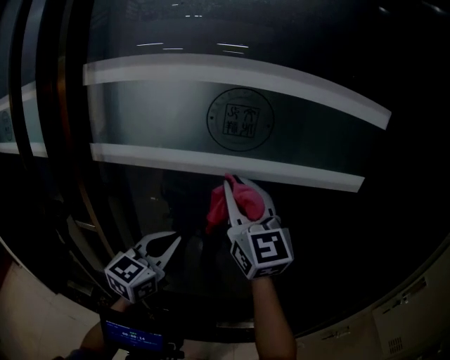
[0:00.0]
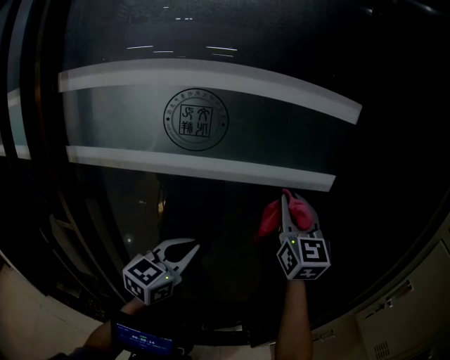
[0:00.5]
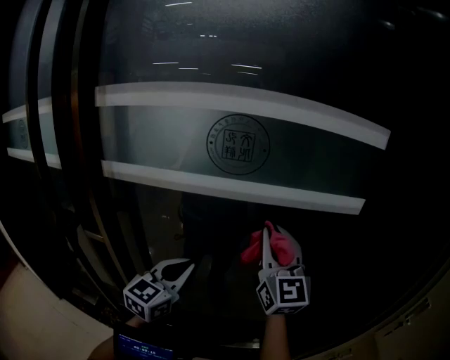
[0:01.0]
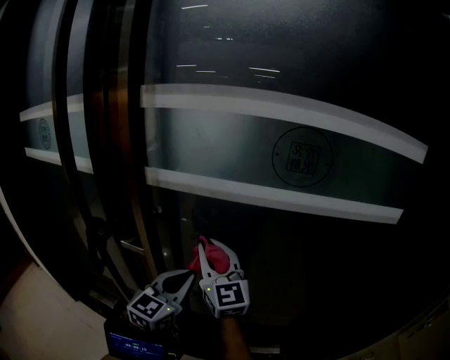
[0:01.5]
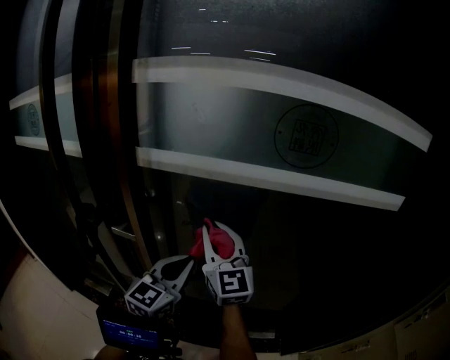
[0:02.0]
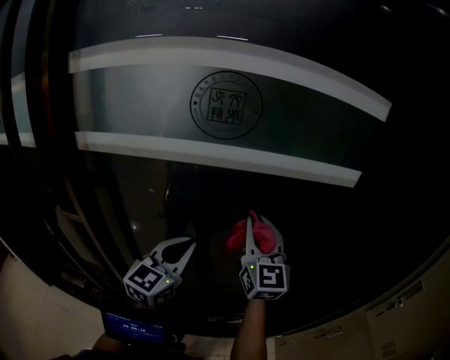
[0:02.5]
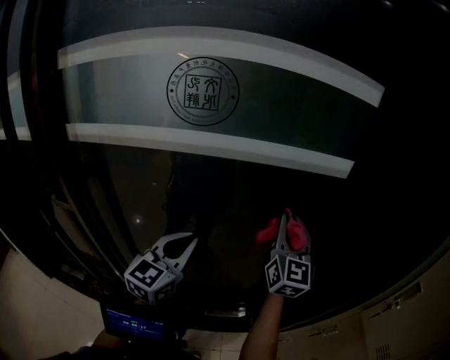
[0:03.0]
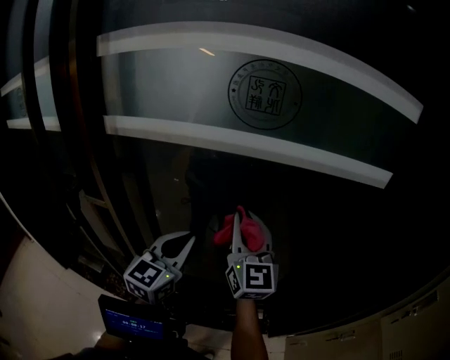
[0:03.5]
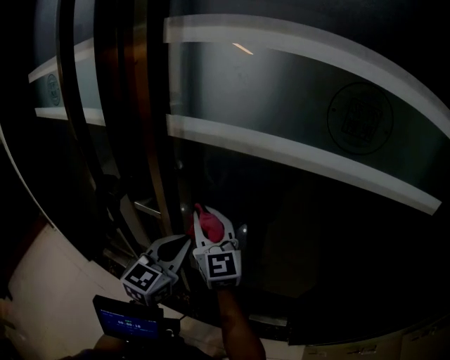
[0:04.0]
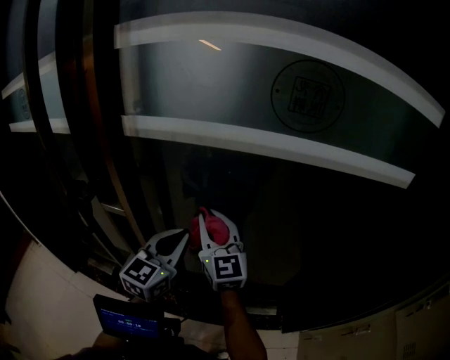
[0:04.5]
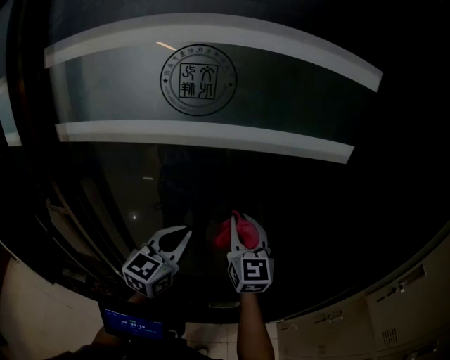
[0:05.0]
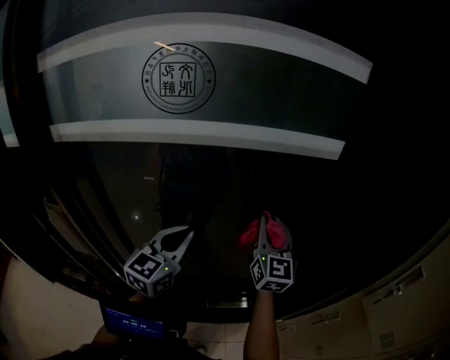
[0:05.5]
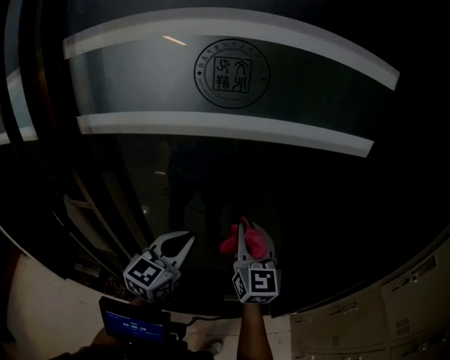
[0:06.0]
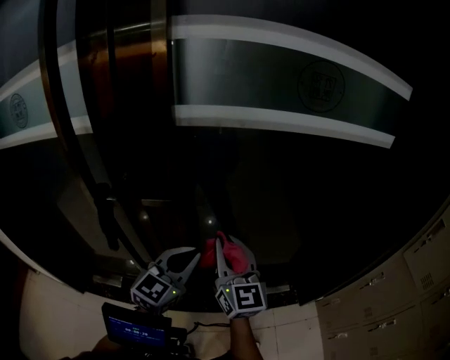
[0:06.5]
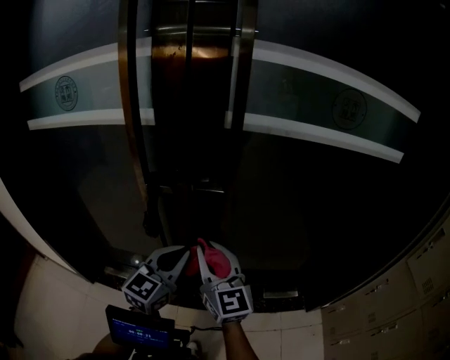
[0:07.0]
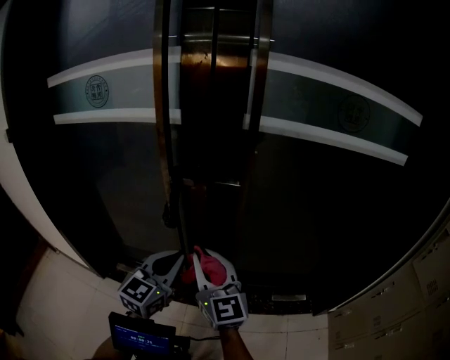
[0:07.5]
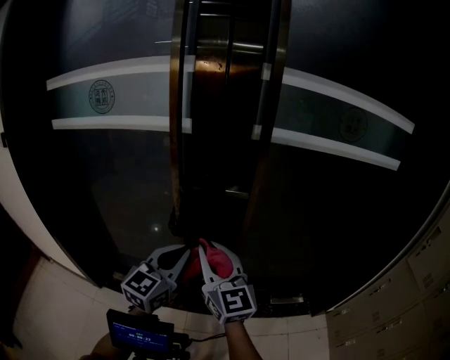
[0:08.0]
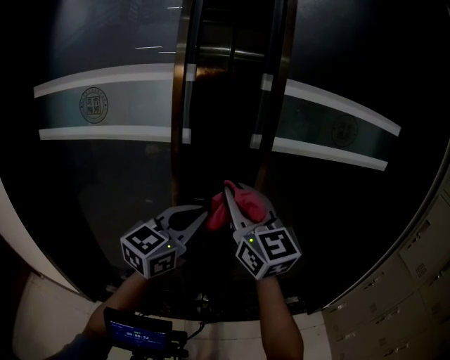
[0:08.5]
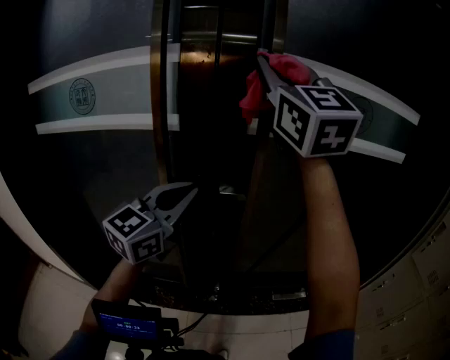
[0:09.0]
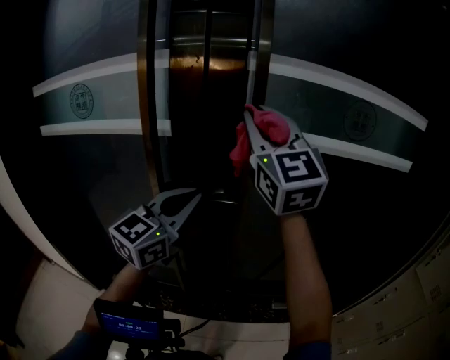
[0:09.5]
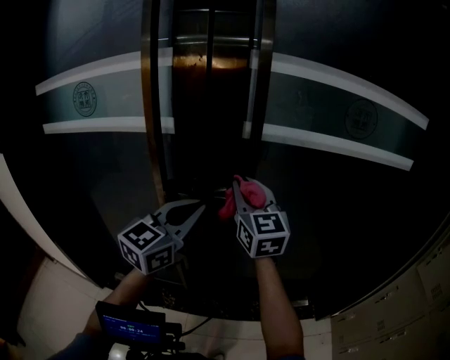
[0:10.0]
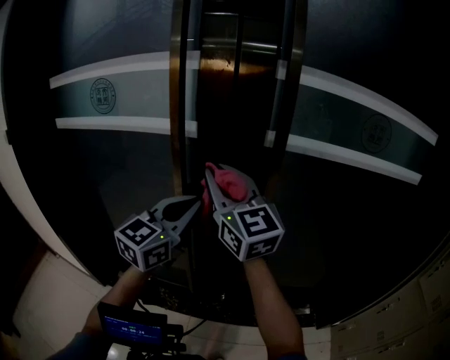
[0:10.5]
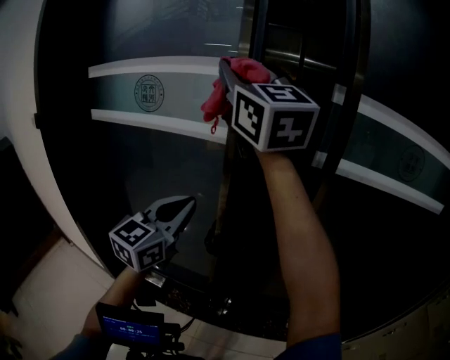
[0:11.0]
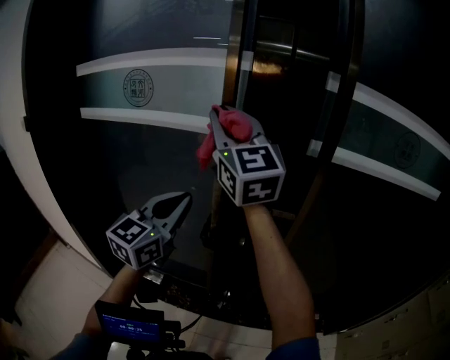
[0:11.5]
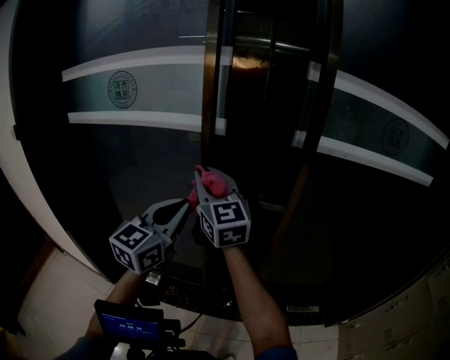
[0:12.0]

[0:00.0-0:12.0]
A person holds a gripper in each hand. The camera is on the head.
0:00.0 to 0:02.0: The left gripper goes about 10 cm to the left, while the right gripper shifts about 20 cm to the left and downward.
0:04.0 to 0:06.0: The left gripper changes place by about 20 cm, and rotates approximately 20 degrees. The right gripper shifts by about 35 cm, and changes its angle by about 30 degrees.
0:06.0 to 0:08.0: The pair of grippers is taken to the left and backward, about 50 cm.
0:08.0 to 0:10.0: The right gripper goes approximately 20 cm forward and to the right, and moves approximately 35 cm upward and comes back. Meanwhile the left gripper heads forward, upward and to the right, covering about 15 cm.
0:10.0 to 0:12.0: The grippers both shift to the left by approximately 20 cm. The right gripper travels upward and back again, about 30 cm each way.

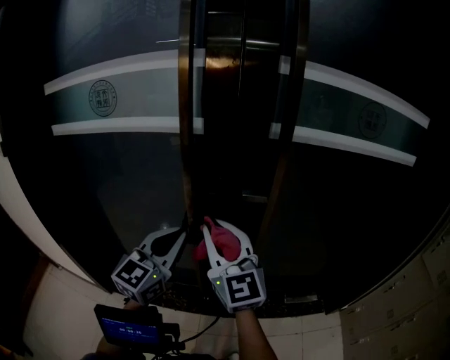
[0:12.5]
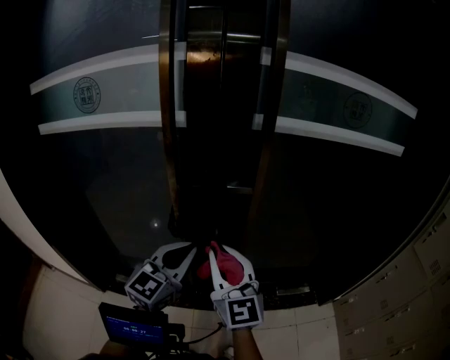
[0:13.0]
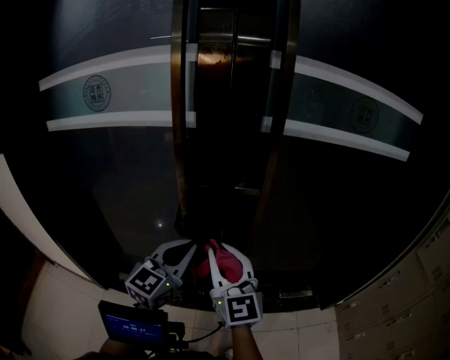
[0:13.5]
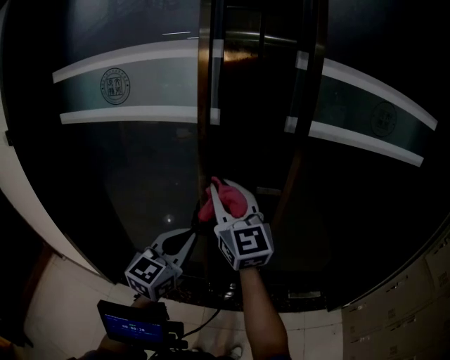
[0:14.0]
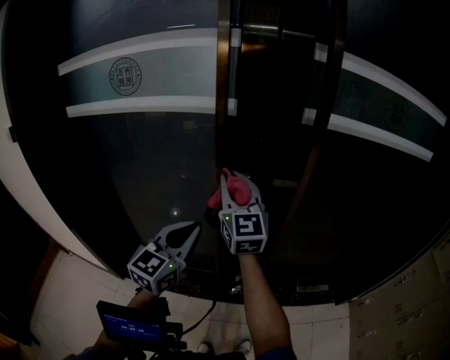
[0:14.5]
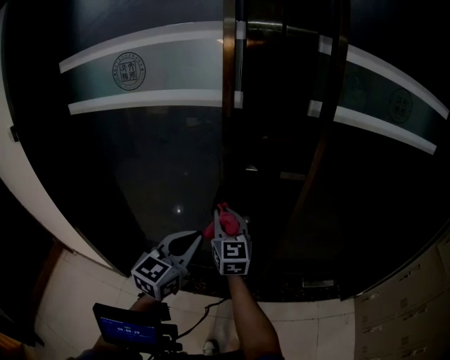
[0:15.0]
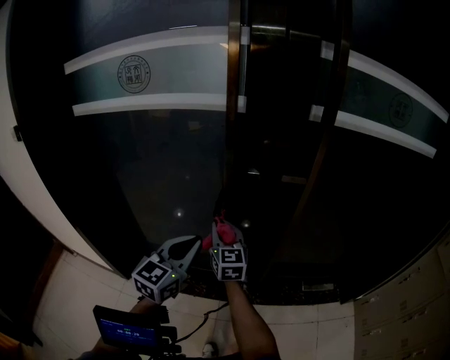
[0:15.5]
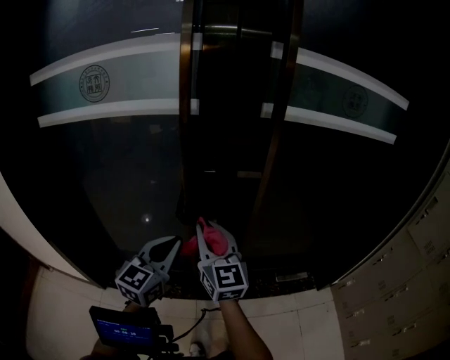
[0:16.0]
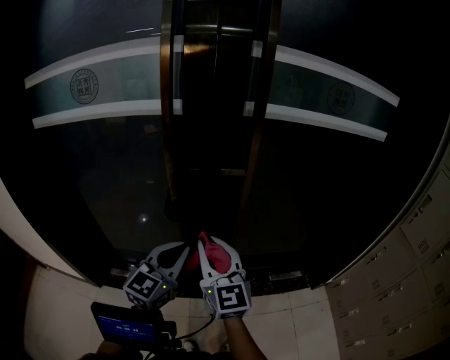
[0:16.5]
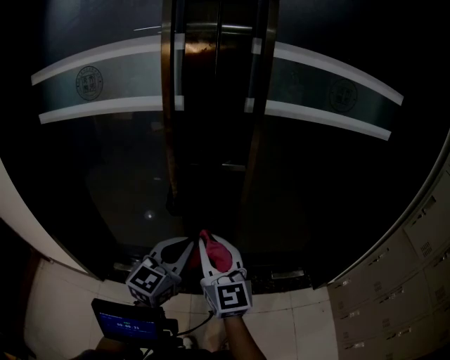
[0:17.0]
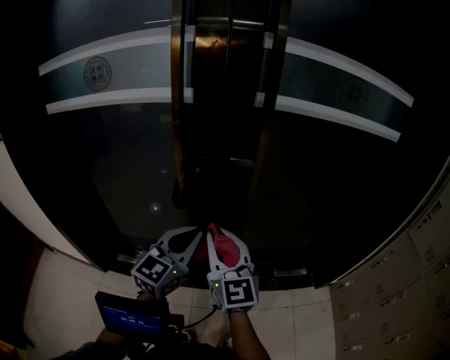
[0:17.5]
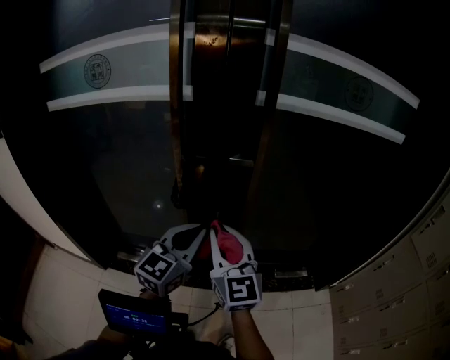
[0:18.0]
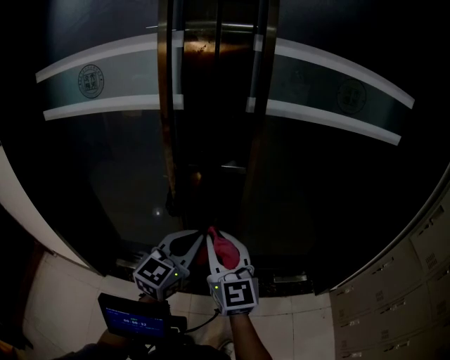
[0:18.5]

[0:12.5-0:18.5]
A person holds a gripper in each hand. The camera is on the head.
0:12.5 to 0:14.5: The right gripper is displaced forward and to the left by about 10 cm. Meanwhile the left gripper travels to the left and downward by roughly 10 cm.
0:14.5 to 0:16.5: The right gripper moves backward, to the right and downward, approximately 20 cm. The left gripper heads to the right and backward, covering approximately 10 cm.
0:16.5 to 0:18.5: The left gripper is displaced to the right by roughly 5 cm.

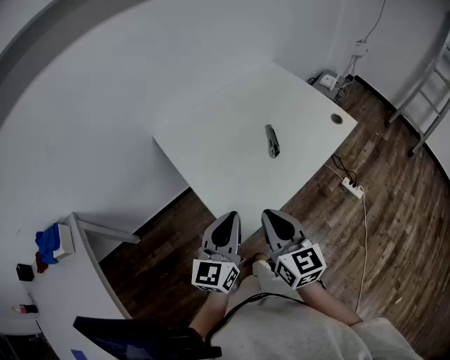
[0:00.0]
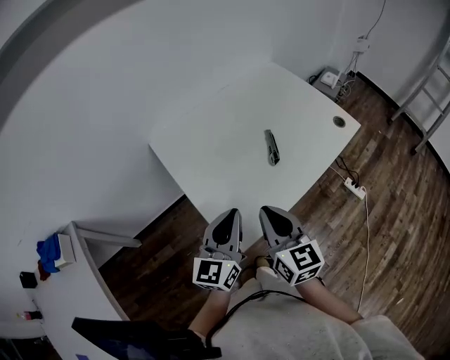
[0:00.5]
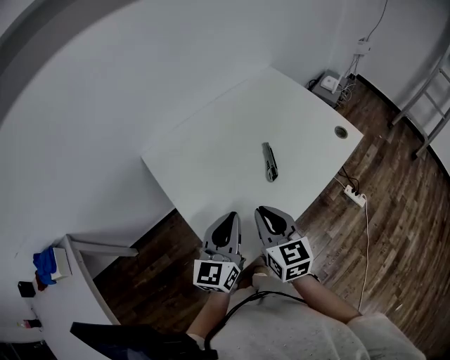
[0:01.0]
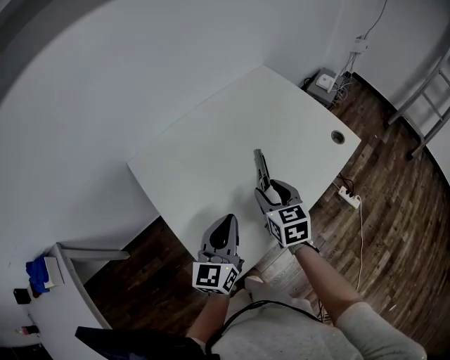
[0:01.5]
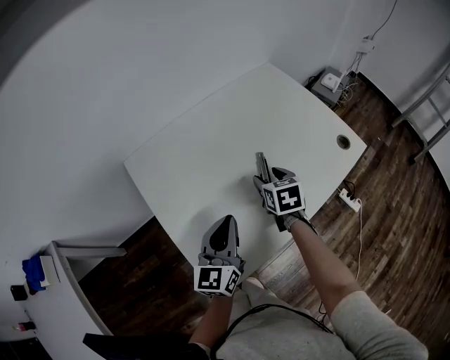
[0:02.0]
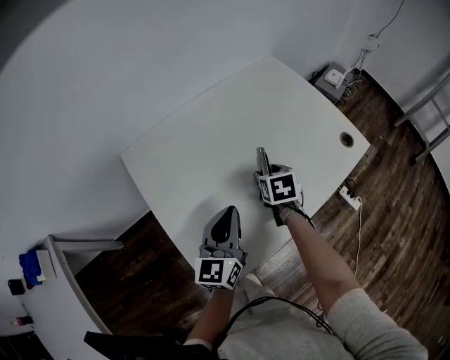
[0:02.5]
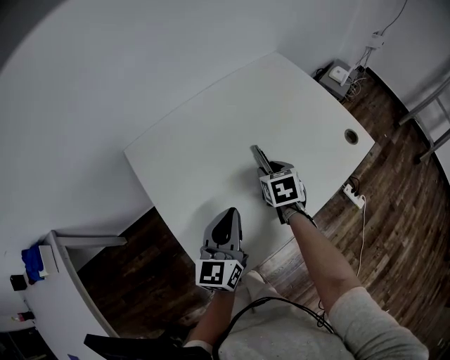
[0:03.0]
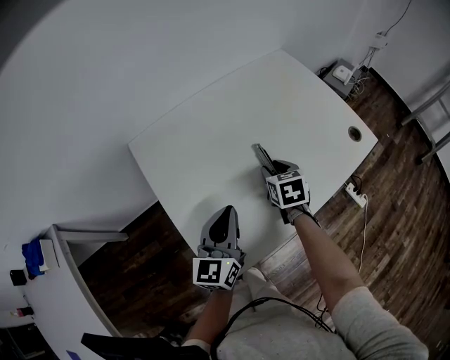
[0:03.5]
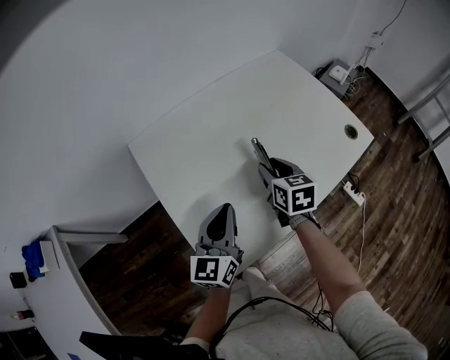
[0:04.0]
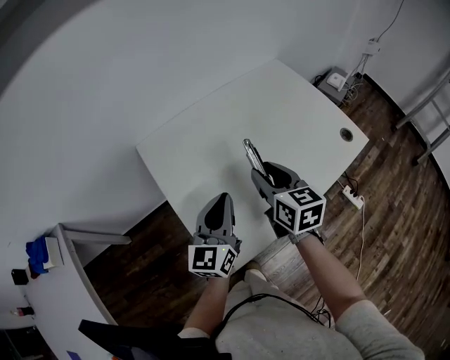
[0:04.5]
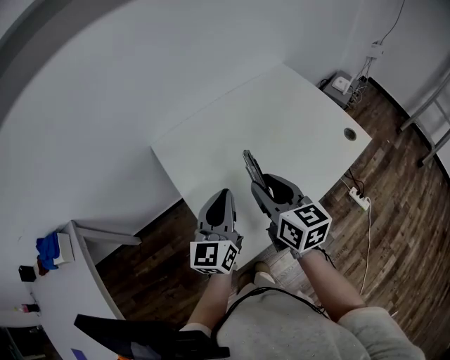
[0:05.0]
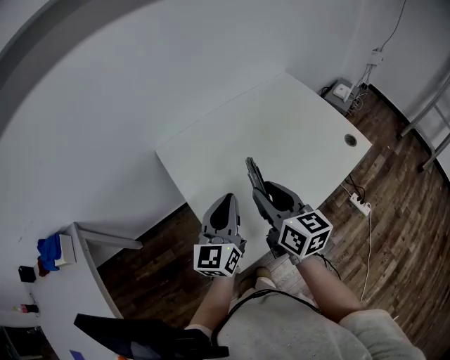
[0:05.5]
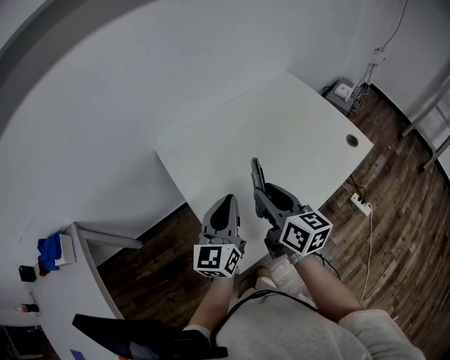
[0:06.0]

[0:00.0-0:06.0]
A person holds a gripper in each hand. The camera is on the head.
0:00.0 to 0:02.0: The right gripper moves forward and downward, roughly 35 cm, tips its fingers downward by about 30 degrees, and opens up; the left gripper goes approximately 20 cm forward and downward.
0:02.0 to 0:04.0: The right gripper closes up.
0:04.0 to 0:06.0: The right gripper moves upward, backward and to the left, some 20 cm, and changes its angle by approximately 30 degrees. Meanwhile the left gripper travels upward by some 5 cm.

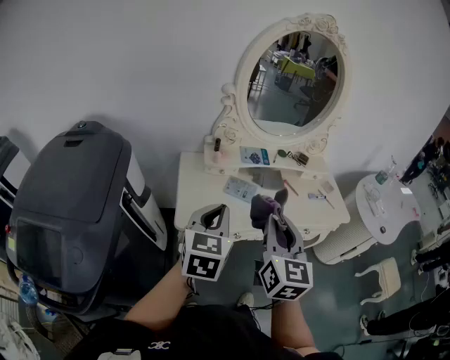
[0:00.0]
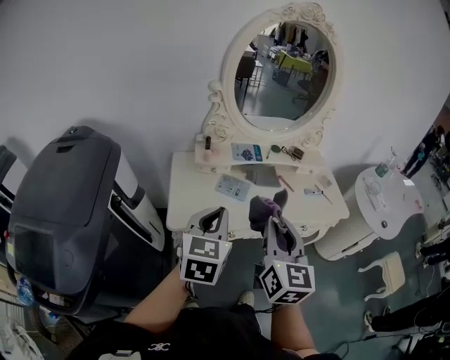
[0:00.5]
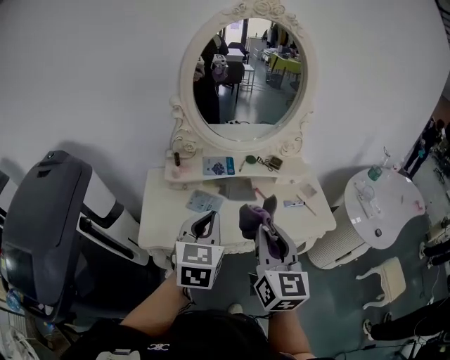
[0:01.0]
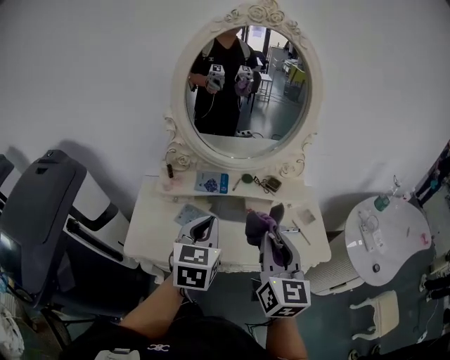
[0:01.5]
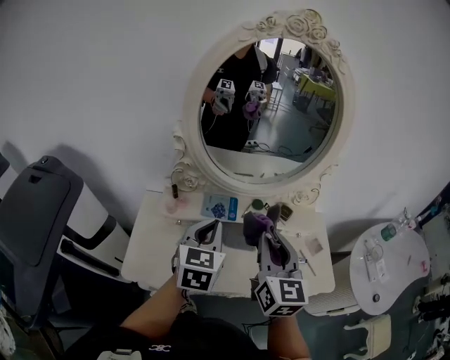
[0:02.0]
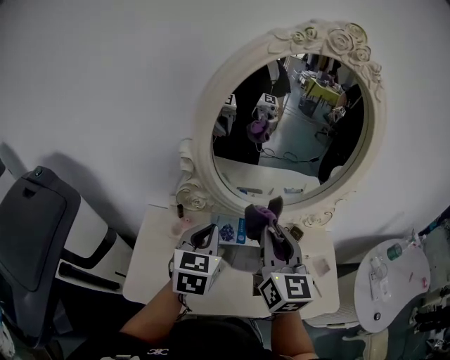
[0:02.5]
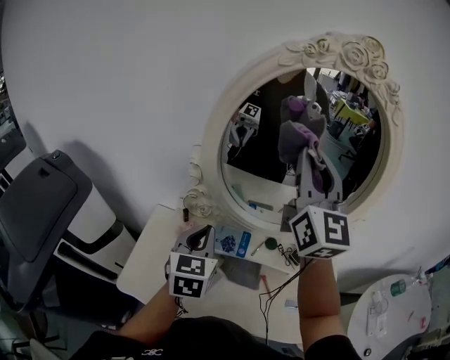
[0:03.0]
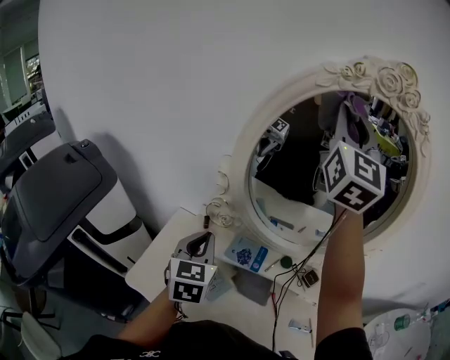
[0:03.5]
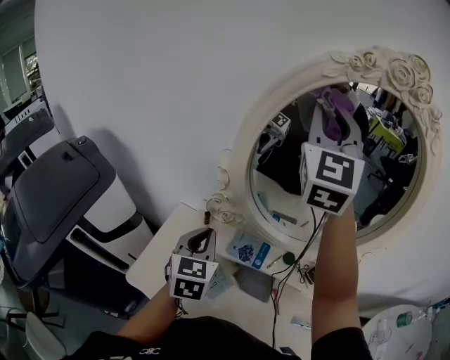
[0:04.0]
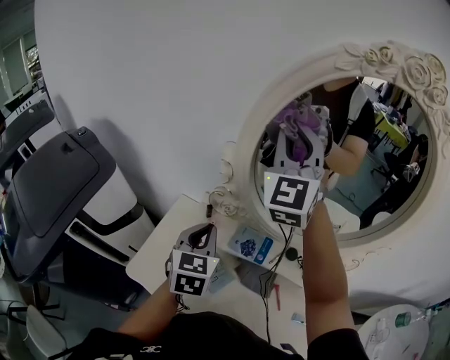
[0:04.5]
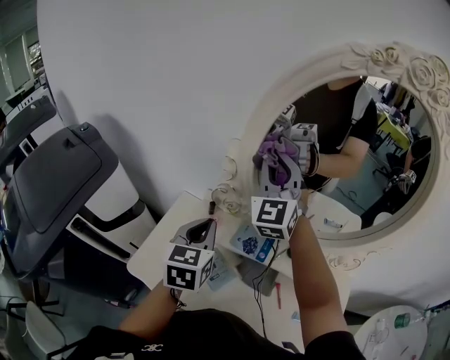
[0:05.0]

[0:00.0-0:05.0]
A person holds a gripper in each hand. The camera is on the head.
0:00.0 to 0:02.5: Both grippers travel together forward, about 35 cm.
0:02.5 to 0:05.0: The right gripper moves forward and to the left, some 25 cm, goes upward and returns, some 30 cm each way, and changes its angle by roughly 40 degrees; the left gripper moves to the left, roughly 5 cm, and swivels about 20 degrees.
